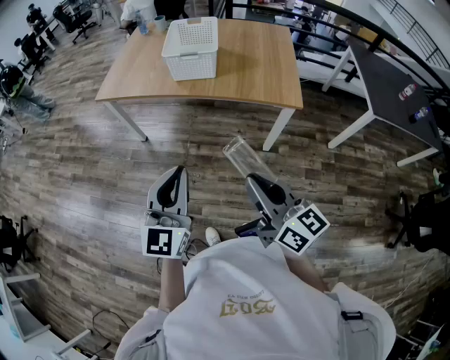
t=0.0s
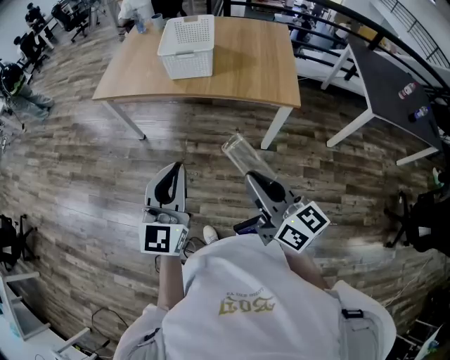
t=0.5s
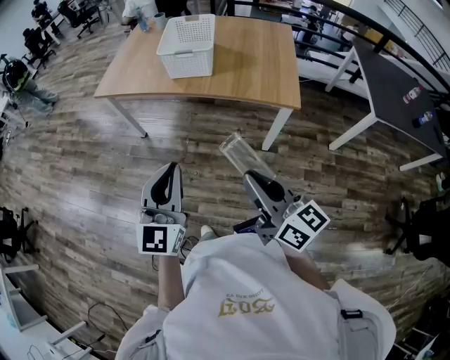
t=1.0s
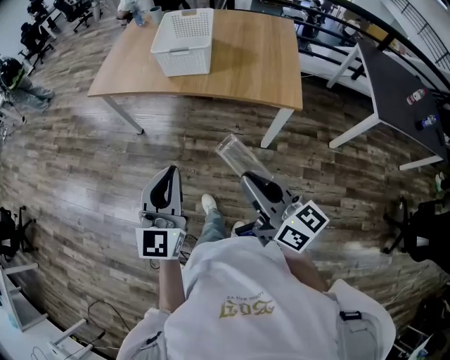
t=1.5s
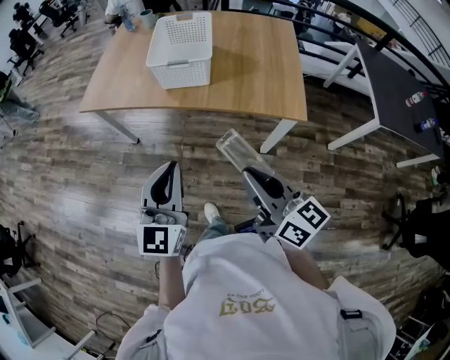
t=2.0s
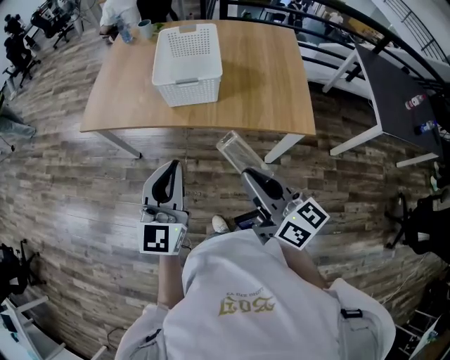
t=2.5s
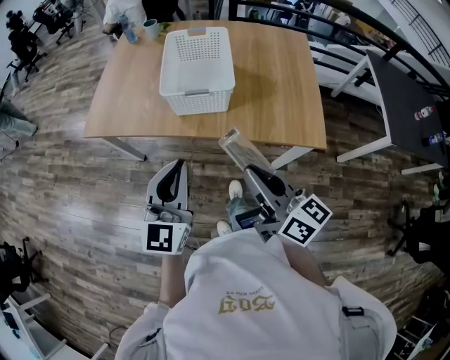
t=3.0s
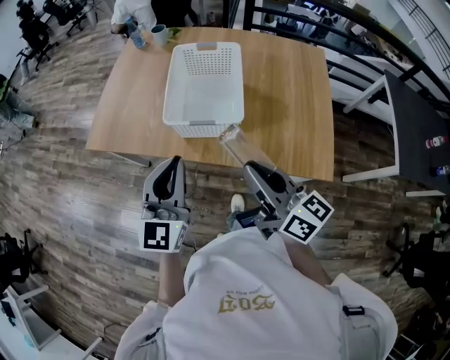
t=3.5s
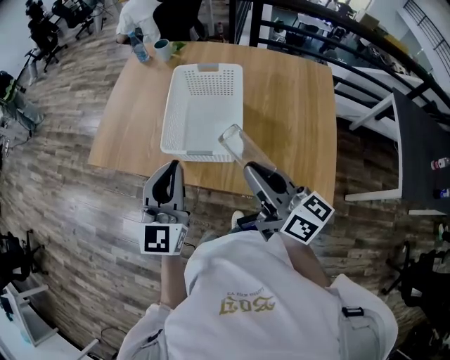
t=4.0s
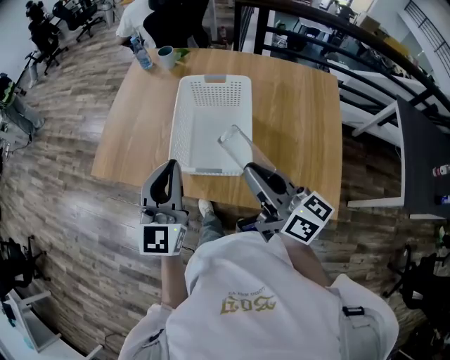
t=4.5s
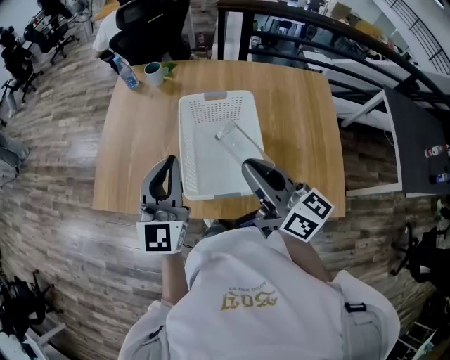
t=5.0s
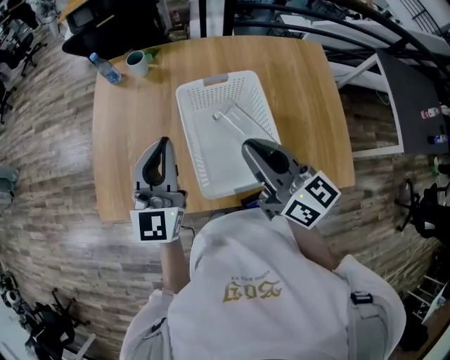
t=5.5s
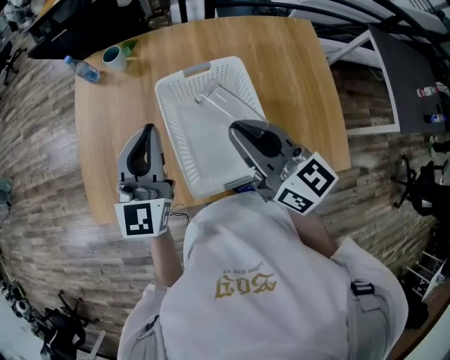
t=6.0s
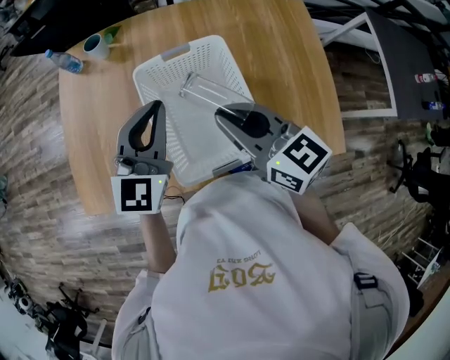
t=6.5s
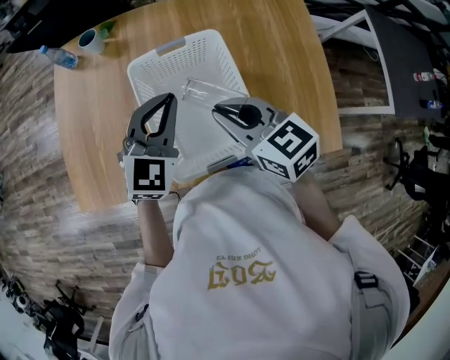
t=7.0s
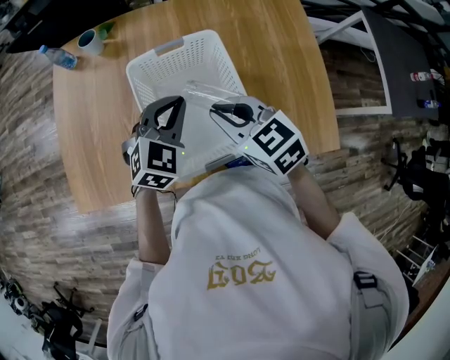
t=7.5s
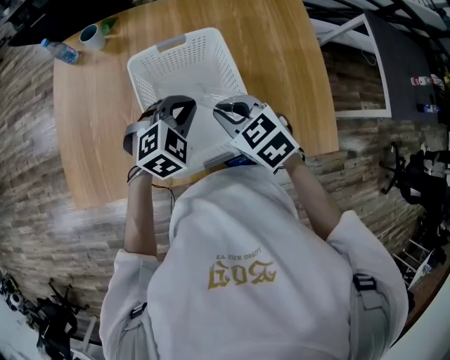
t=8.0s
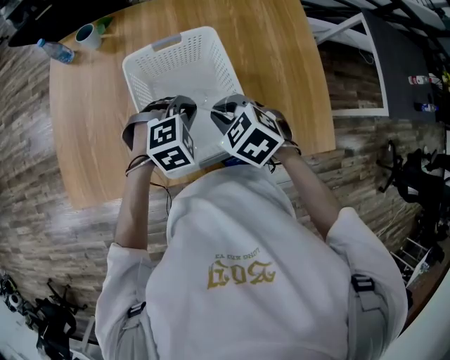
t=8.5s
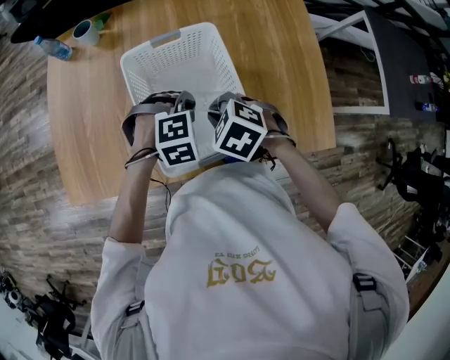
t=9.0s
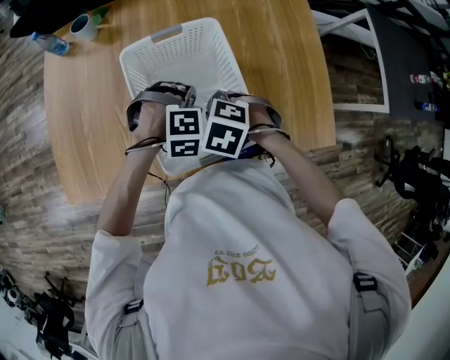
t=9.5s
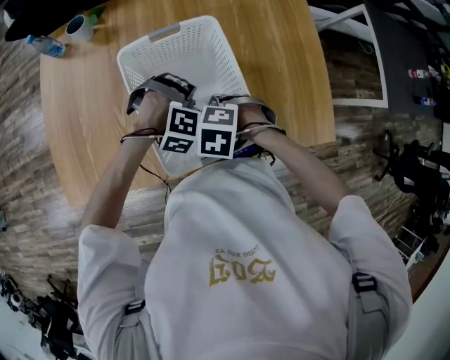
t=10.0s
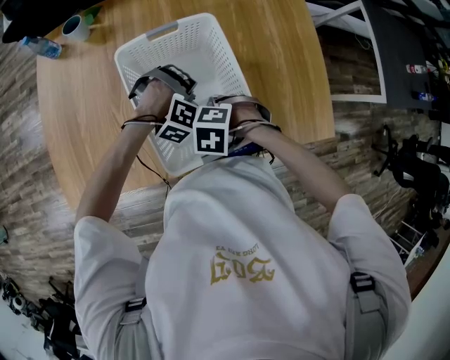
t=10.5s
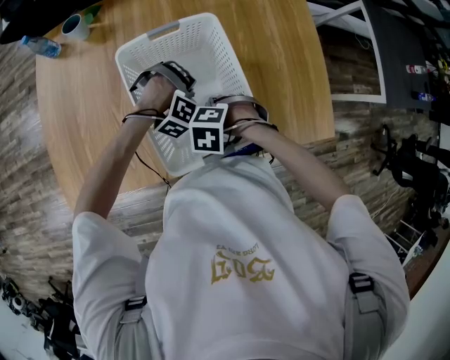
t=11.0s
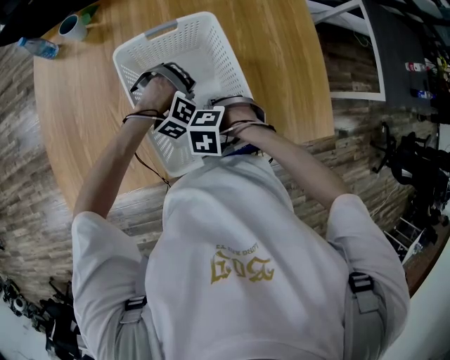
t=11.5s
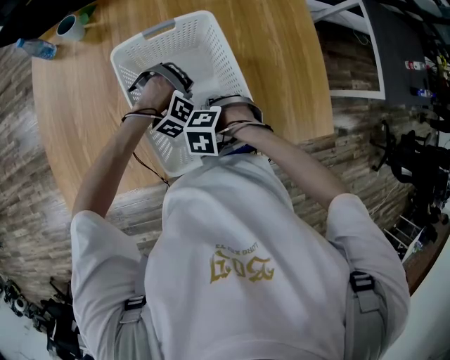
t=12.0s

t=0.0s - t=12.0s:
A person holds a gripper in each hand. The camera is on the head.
t=0.0s - t=2.0s: The grippers both shift forward by some 15 cm.
t=2.0s - t=4.0s: Both grippers move forward, about 35 cm.
t=4.0s - t=6.0s: The right gripper shifts approximately 20 cm forward and to the left, and changes its angle by some 20 degrees, while the left gripper moves forward, some 25 cm.
t=6.0s - t=8.0s: The left gripper goes about 20 cm downward and to the right, and tips its fingers downward by roughly 50 degrees. The right gripper moves downward, some 15 cm, and tips its fingers downward by some 40 degrees.
t=8.0s - t=10.0s: The two grippers go some 10 cm downward. The right gripper tips its fingers downward by about 40 degrees. The left gripper rolls clockwise, seen from behind, by about 50 degrees.
t=10.0s - t=12.0s: The right gripper heads downward, covering some 5 cm. Meanwhile the left gripper shifts by about 15 cm, and tips its fingers upward by about 70 degrees.

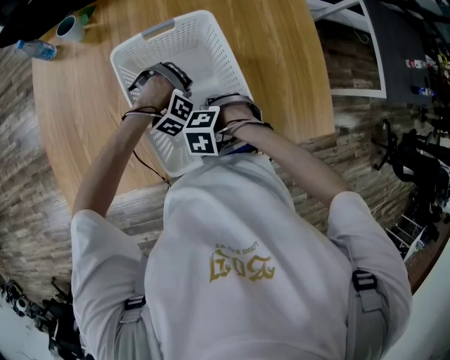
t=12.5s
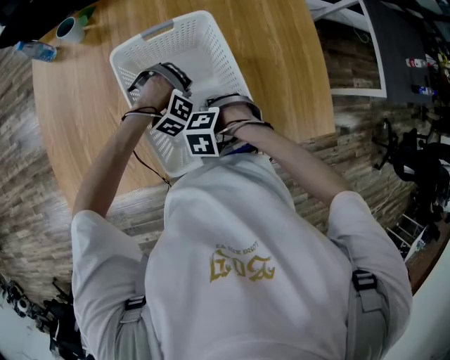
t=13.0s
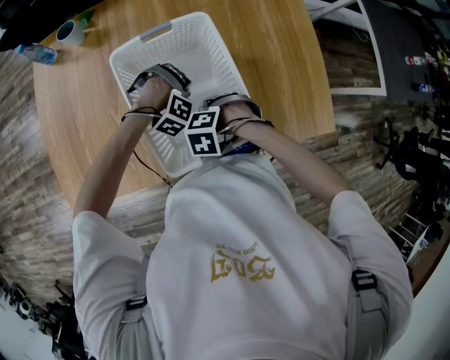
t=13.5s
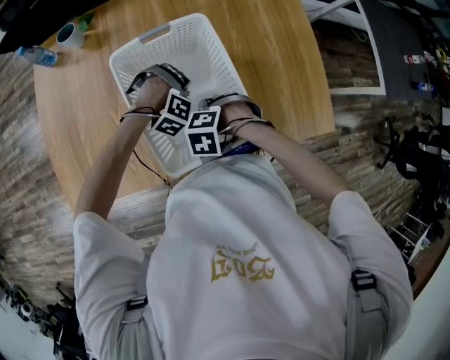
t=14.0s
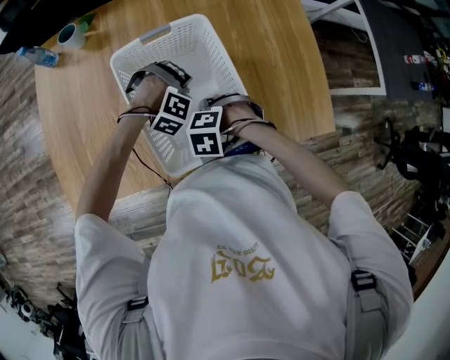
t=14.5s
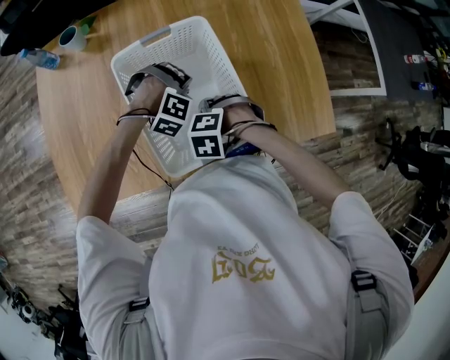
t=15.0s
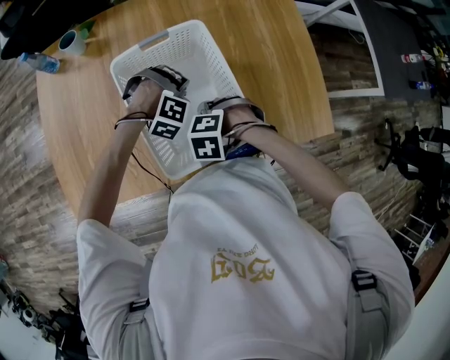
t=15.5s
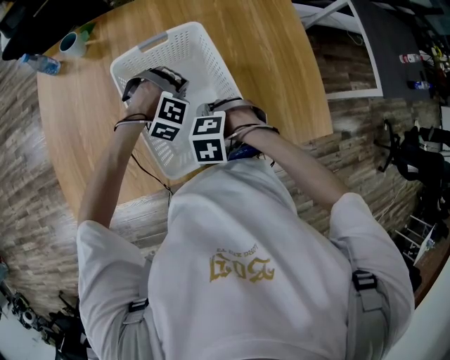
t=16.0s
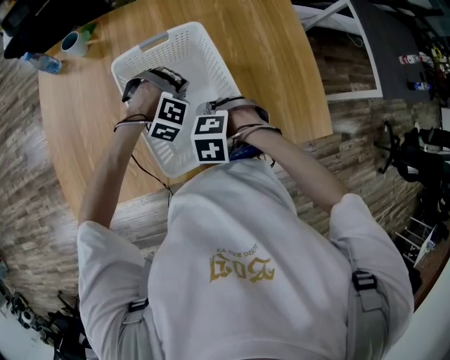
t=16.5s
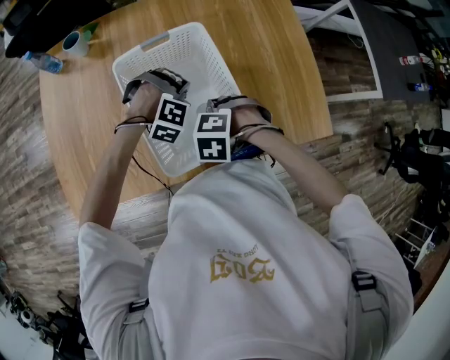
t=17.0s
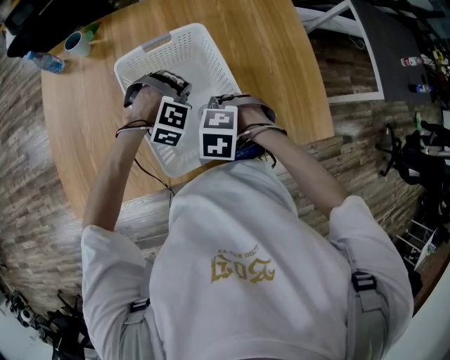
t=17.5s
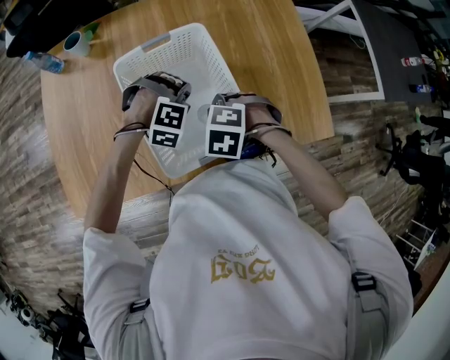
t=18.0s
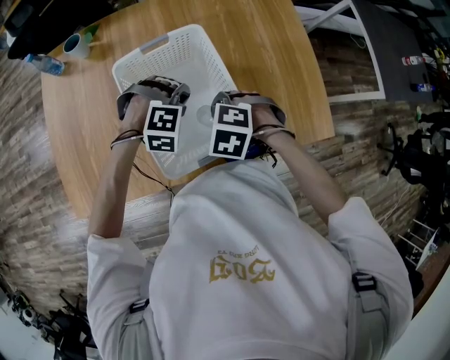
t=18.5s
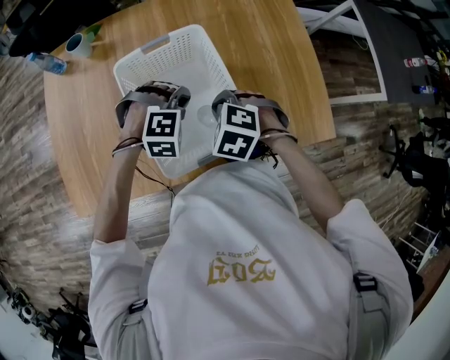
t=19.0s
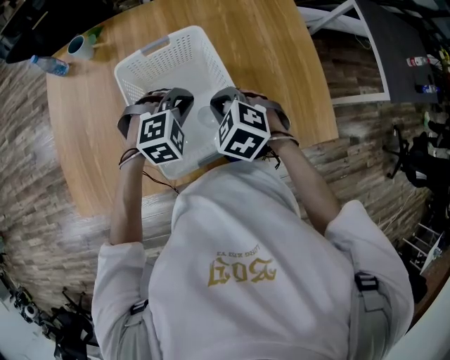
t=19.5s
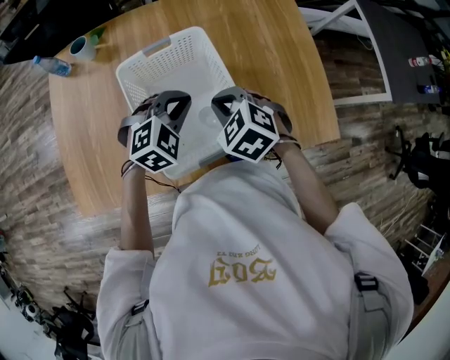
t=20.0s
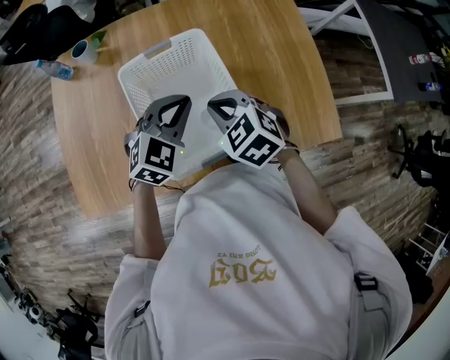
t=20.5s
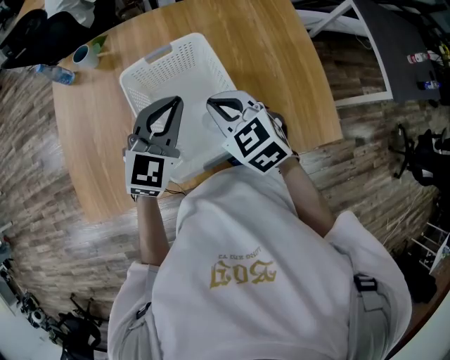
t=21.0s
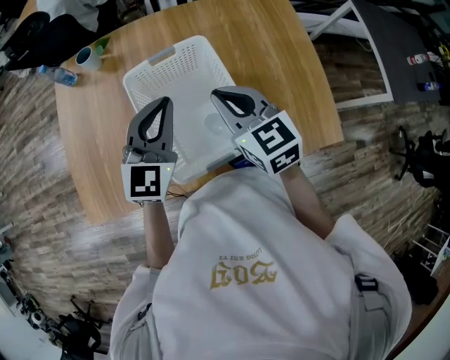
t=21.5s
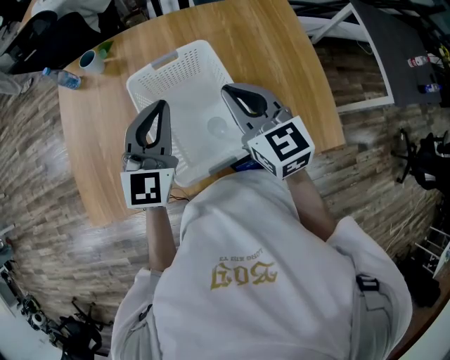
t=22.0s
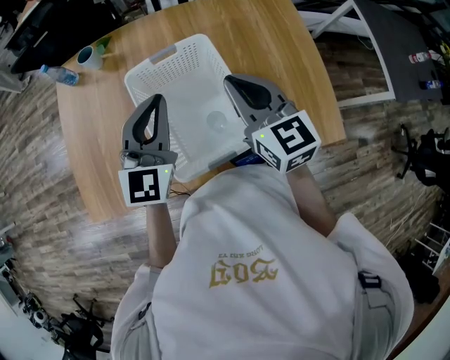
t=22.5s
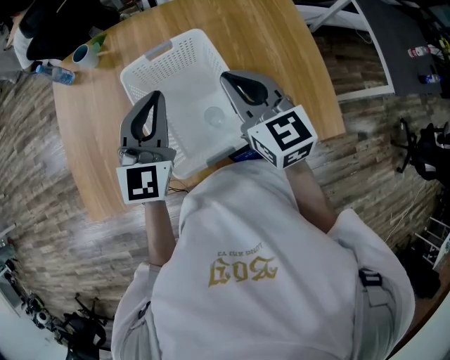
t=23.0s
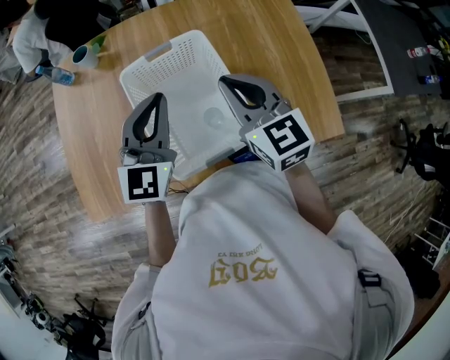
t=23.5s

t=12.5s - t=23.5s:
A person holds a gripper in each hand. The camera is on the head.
t=12.5s - t=14.5s: The left gripper moves about 5 cm.
t=14.5s - t=16.0s: The grippers make only small movements.
t=16.0s - t=18.0s: The right gripper ends up roughly 5 cm from where it was.
t=18.0s - t=20.0s: Both grippers move upward, about 5 cm. The right gripper swivels roughly 30 degrees, while the left gripper rolls counterclockwise, seen from behind, by roughly 40 degrees.
t=20.0s - t=21.5s: The right gripper shifts roughly 10 cm upward, and points its fingers about 30 degrees further upward; the left gripper moves upward and to the left, some 15 cm, and points its fingers roughly 40 degrees further upward.
t=21.5s - t=23.5s: The grippers make only small movements.

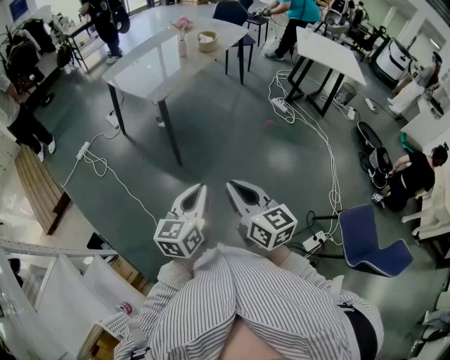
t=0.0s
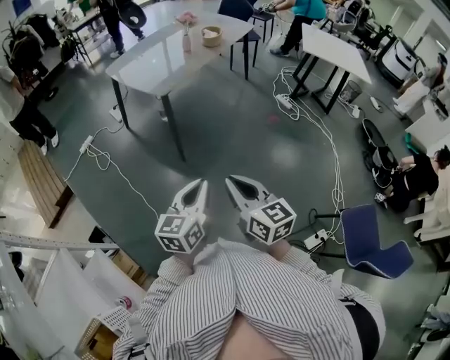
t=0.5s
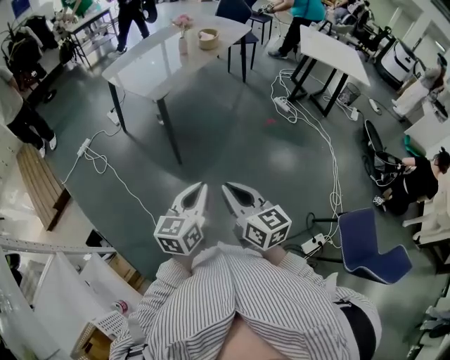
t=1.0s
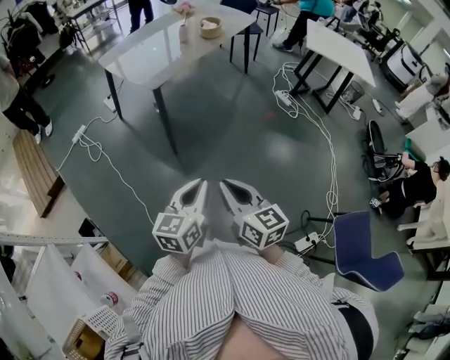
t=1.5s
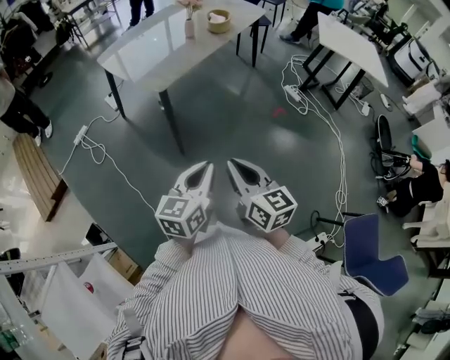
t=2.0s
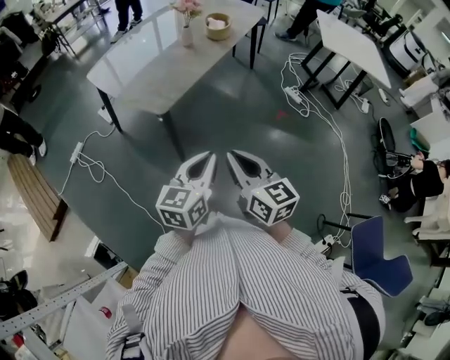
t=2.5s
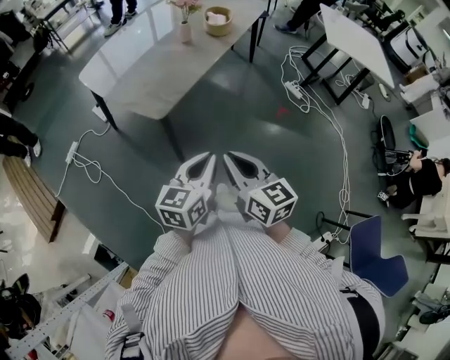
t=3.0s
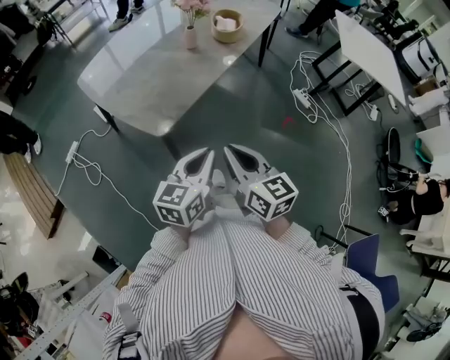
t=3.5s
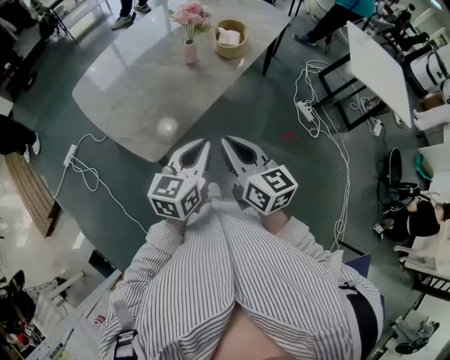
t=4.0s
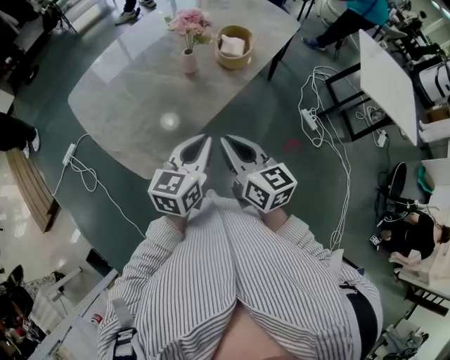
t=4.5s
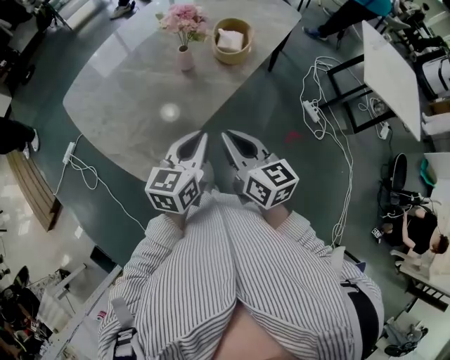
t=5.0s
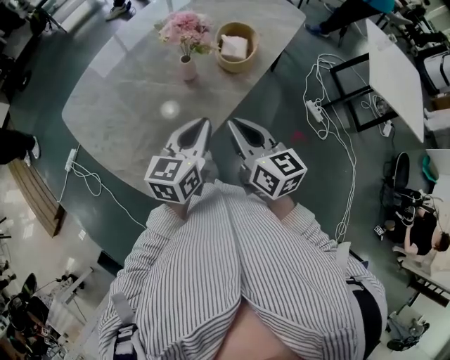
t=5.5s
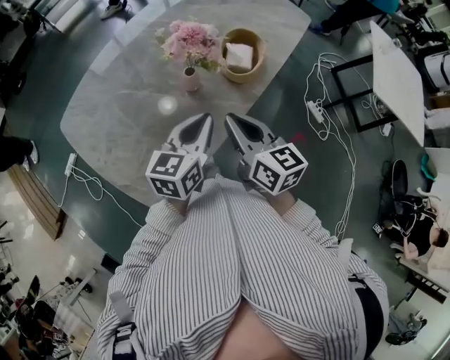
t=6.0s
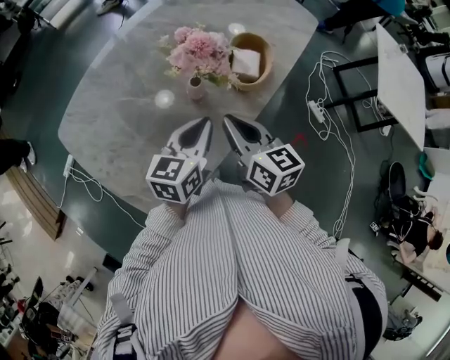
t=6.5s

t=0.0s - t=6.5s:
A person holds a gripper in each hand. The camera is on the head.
t=0.0s - t=2.0s: Both grippers move forward, roughly 15 cm.
t=2.0s - t=4.5s: The pair of grippers is taken forward, approximately 60 cm.
t=4.5s - t=6.5s: The grippers both shift forward by some 25 cm.
